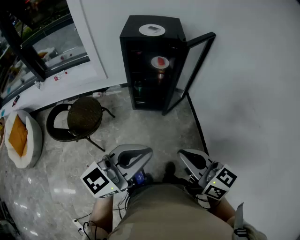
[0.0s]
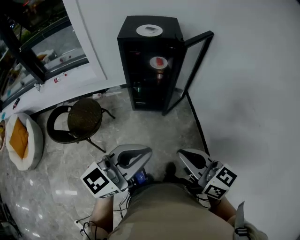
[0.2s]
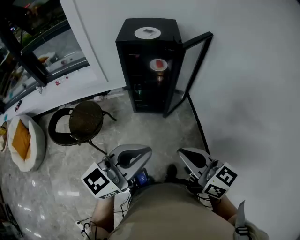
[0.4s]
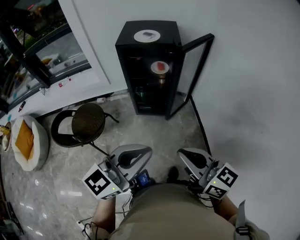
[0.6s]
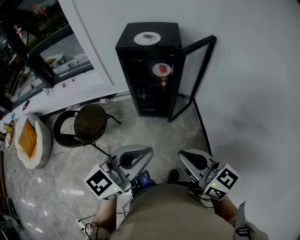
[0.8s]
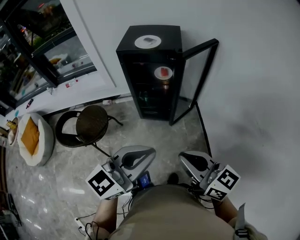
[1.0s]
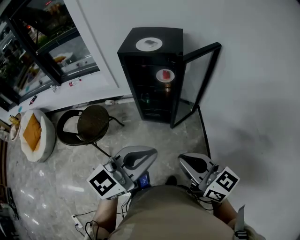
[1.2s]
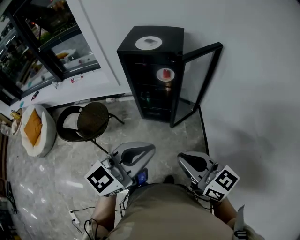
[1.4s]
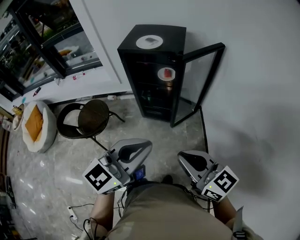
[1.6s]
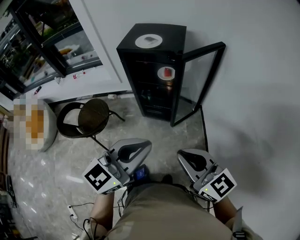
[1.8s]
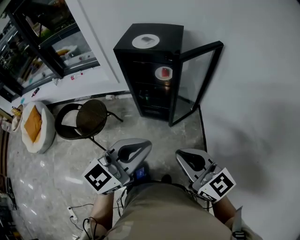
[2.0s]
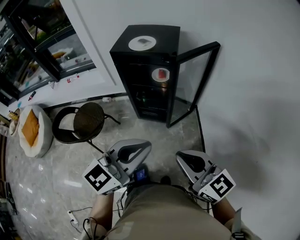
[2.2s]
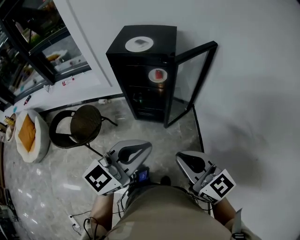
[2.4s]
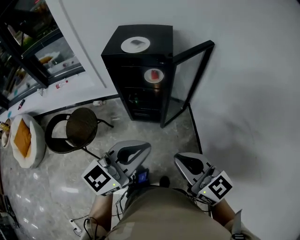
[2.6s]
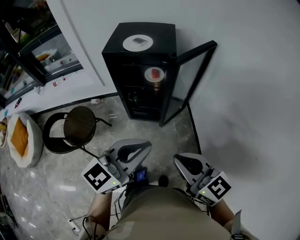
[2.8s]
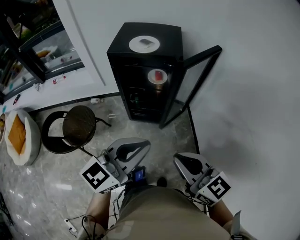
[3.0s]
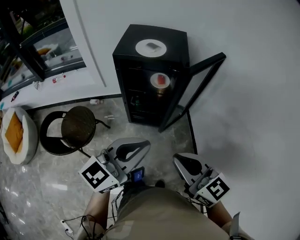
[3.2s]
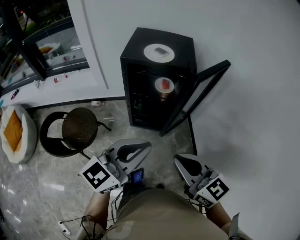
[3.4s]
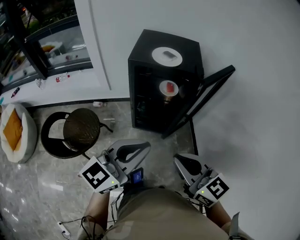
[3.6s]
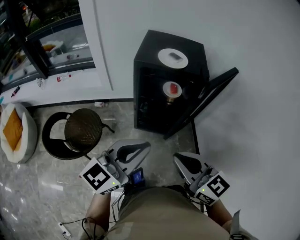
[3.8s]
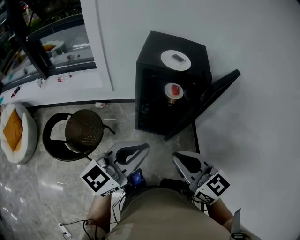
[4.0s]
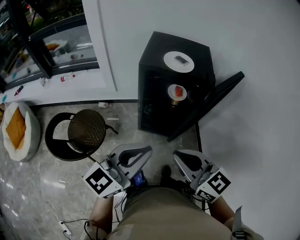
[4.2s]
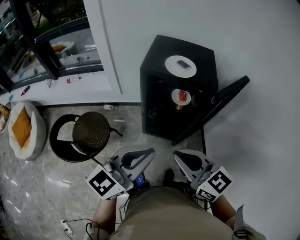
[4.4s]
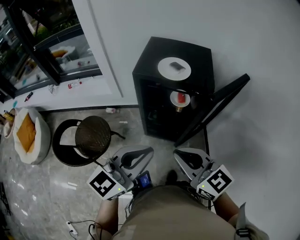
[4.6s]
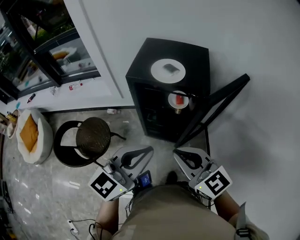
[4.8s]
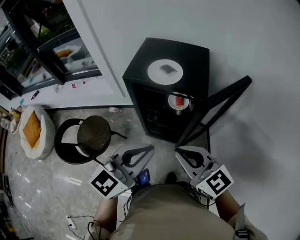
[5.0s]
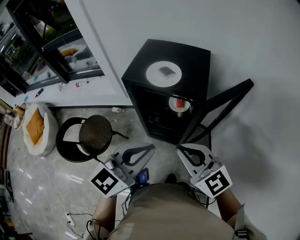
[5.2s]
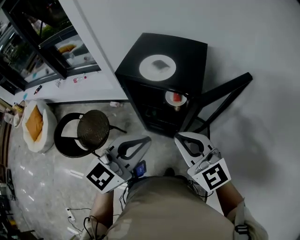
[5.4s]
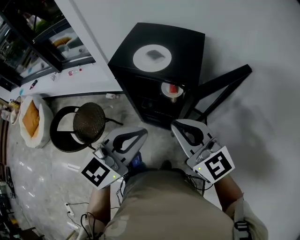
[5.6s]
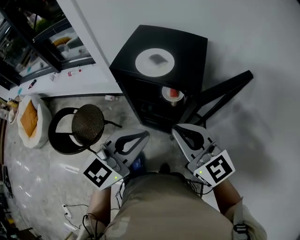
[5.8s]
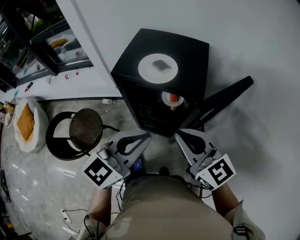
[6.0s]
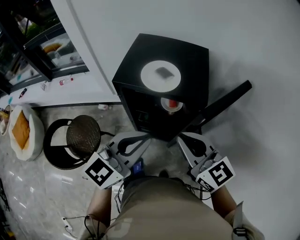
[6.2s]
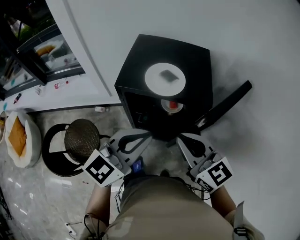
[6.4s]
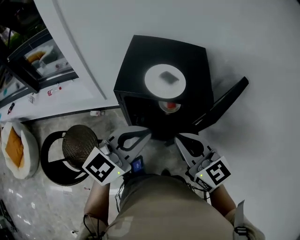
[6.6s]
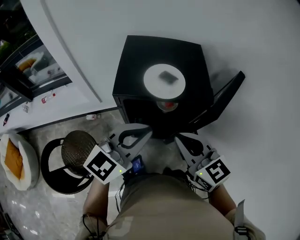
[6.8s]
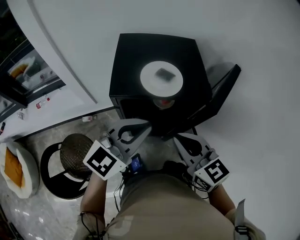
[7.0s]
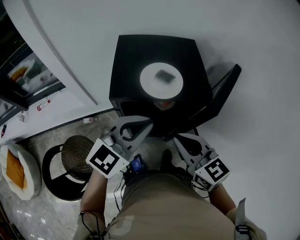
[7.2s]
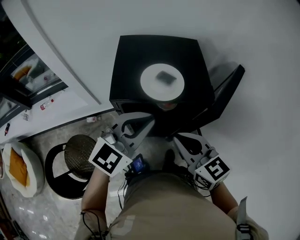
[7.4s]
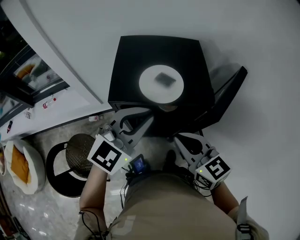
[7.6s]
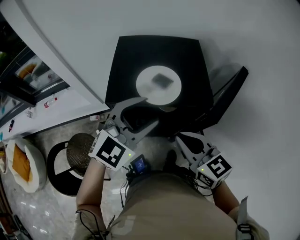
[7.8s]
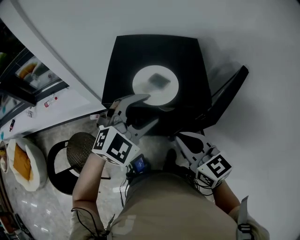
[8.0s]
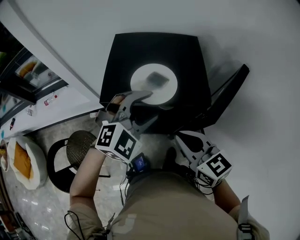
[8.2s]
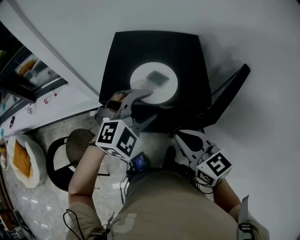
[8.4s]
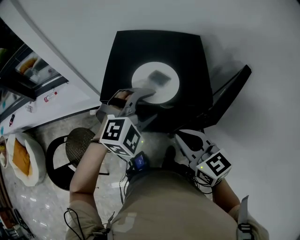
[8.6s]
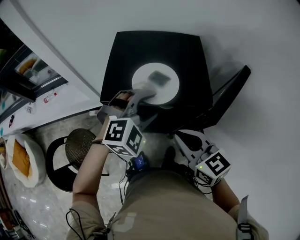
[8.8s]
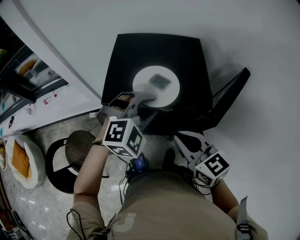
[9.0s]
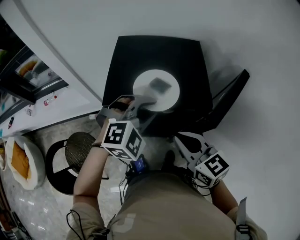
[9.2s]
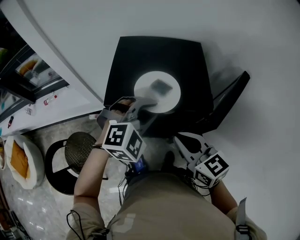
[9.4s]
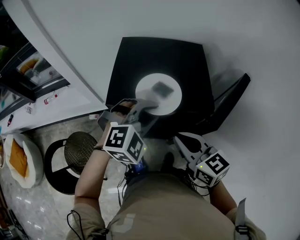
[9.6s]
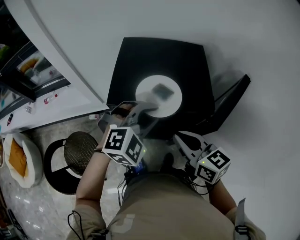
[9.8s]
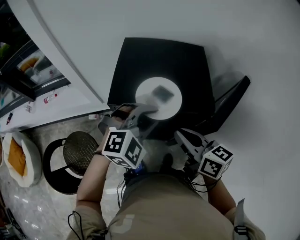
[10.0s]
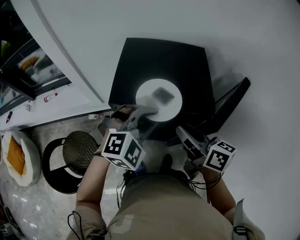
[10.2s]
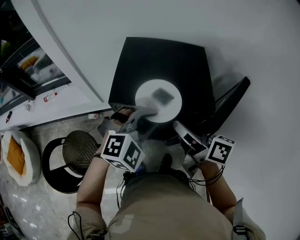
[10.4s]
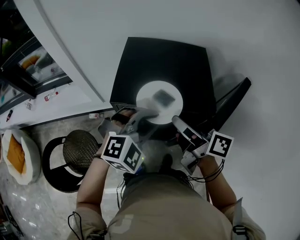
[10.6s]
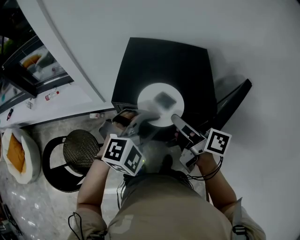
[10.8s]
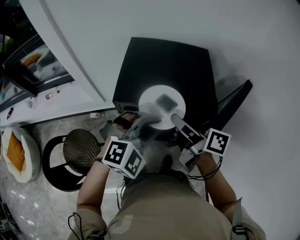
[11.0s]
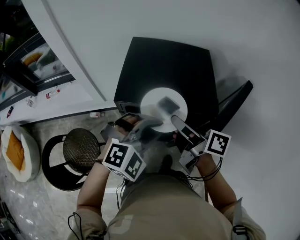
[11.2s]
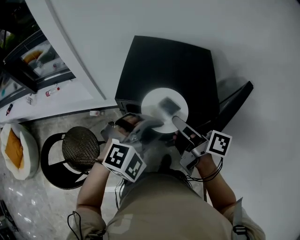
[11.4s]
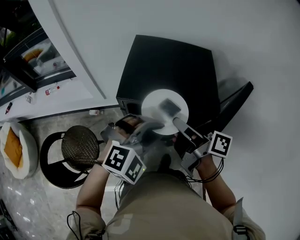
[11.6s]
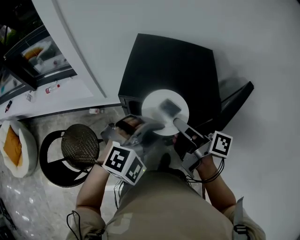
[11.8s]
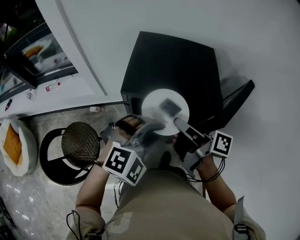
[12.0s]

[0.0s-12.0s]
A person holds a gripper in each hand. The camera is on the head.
0.0s to 1.6s: The grippers both shift to the right and forward by some 15 cm.
1.6s to 3.0s: Both grippers move forward and to the left, approximately 10 cm.
3.0s to 4.4s: The grippers both shift to the left and forward by approximately 15 cm.
4.4s to 6.0s: Both grippers travel together forward and to the right, roughly 15 cm.
6.0s to 7.6s: The right gripper goes approximately 10 cm to the left, downward and forward, and turns by roughly 20 degrees, while the left gripper heads forward and to the left, covering roughly 15 cm, and changes its angle by some 30 degrees.
7.6s to 9.0s: The left gripper is displaced downward and forward by about 10 cm, rotates about 40 degrees, and opens.
9.0s to 10.4s: The right gripper ends up some 5 cm from where it was, twists about 40 degrees clockwise, seen from behind, and opens.
10.4s to 12.0s: The right gripper changes its angle by some 30 degrees, and closes up. The left gripper heads backward, covering roughly 5 cm.

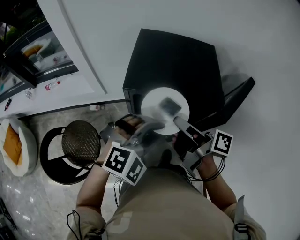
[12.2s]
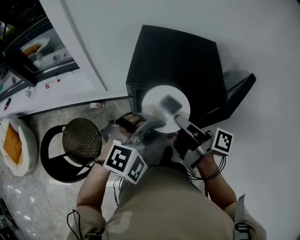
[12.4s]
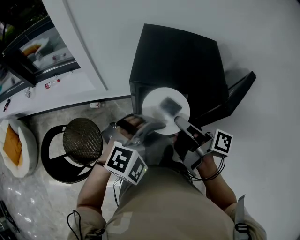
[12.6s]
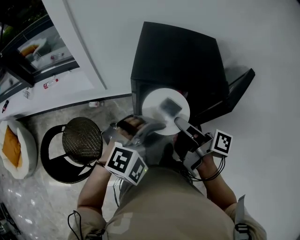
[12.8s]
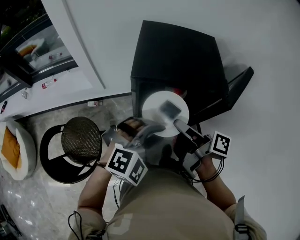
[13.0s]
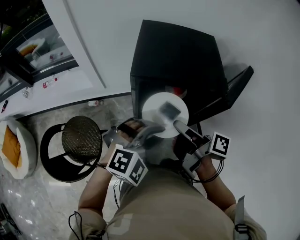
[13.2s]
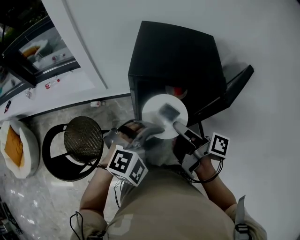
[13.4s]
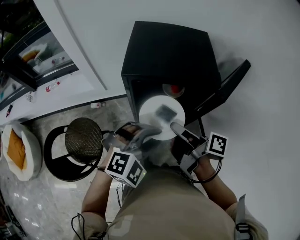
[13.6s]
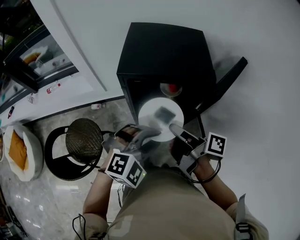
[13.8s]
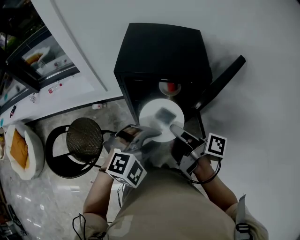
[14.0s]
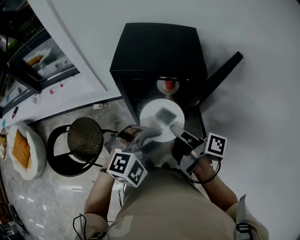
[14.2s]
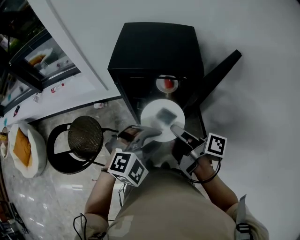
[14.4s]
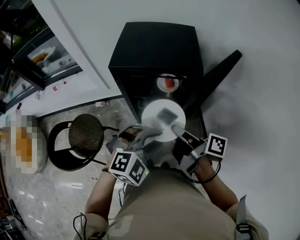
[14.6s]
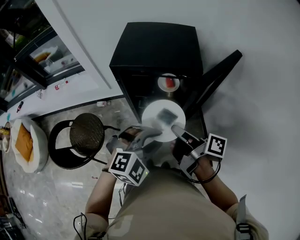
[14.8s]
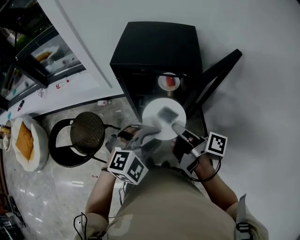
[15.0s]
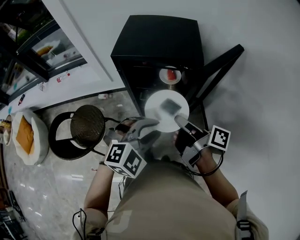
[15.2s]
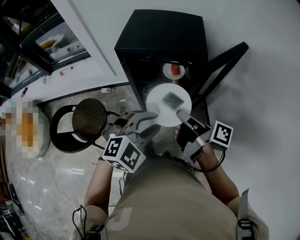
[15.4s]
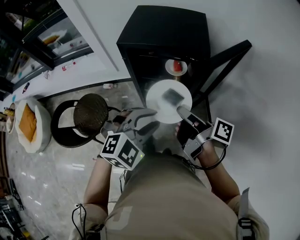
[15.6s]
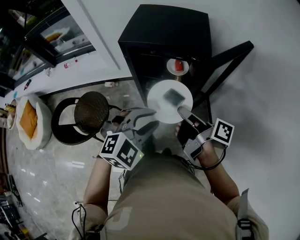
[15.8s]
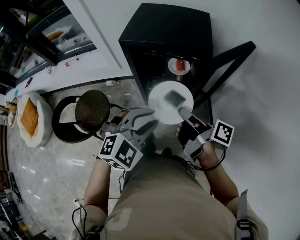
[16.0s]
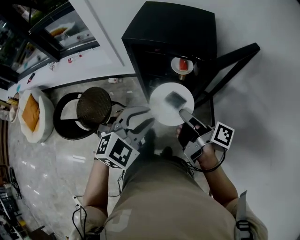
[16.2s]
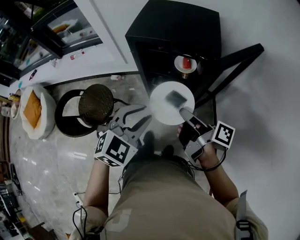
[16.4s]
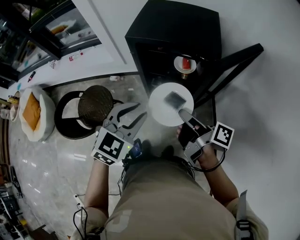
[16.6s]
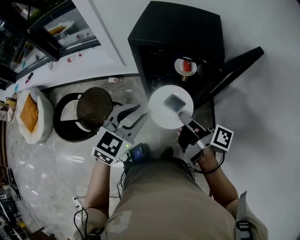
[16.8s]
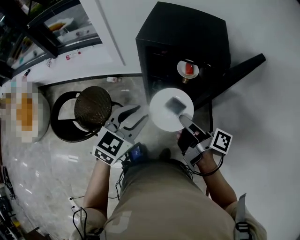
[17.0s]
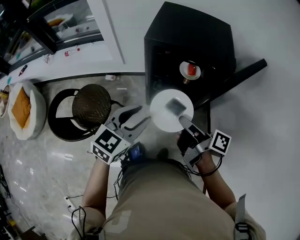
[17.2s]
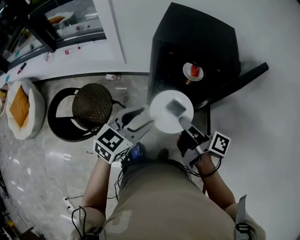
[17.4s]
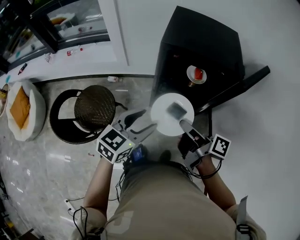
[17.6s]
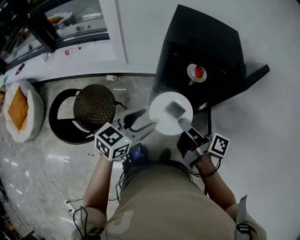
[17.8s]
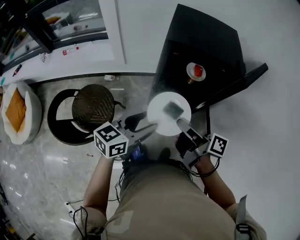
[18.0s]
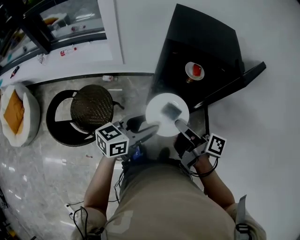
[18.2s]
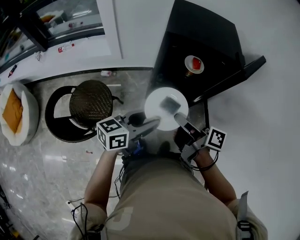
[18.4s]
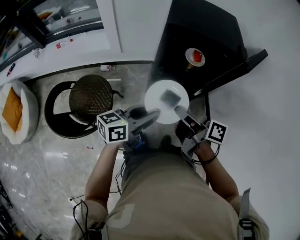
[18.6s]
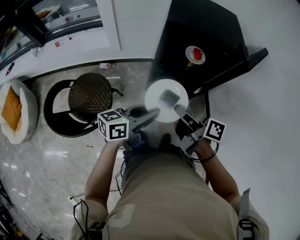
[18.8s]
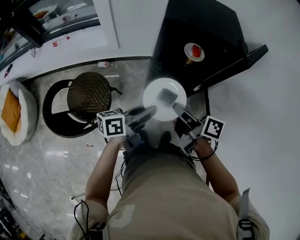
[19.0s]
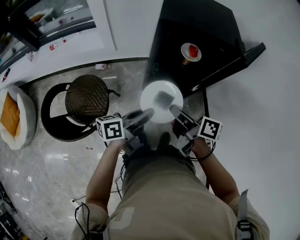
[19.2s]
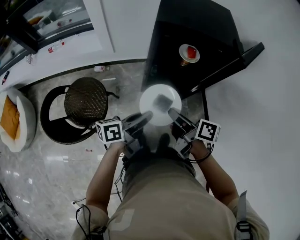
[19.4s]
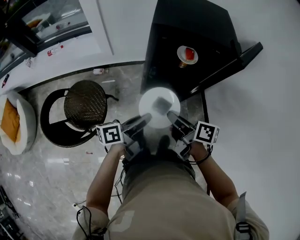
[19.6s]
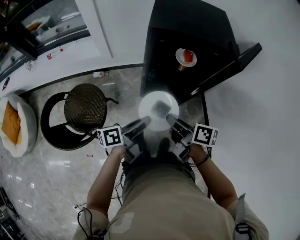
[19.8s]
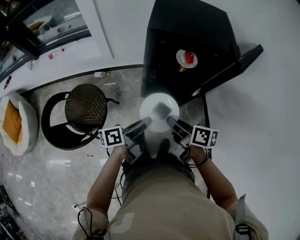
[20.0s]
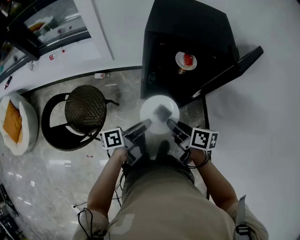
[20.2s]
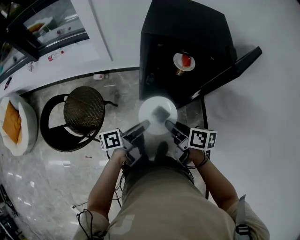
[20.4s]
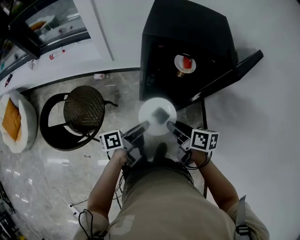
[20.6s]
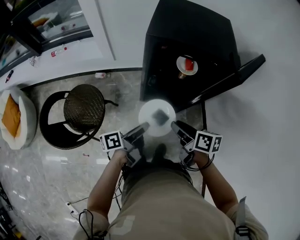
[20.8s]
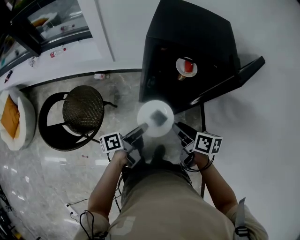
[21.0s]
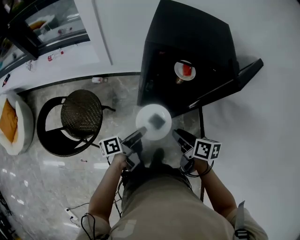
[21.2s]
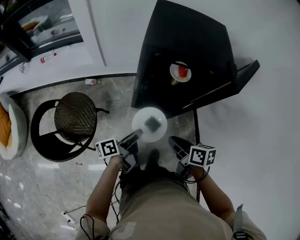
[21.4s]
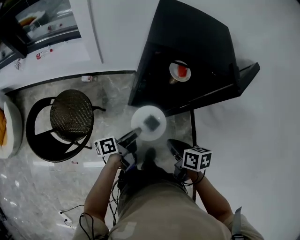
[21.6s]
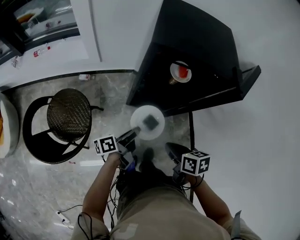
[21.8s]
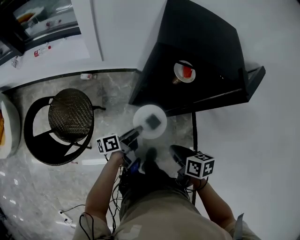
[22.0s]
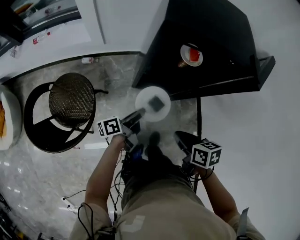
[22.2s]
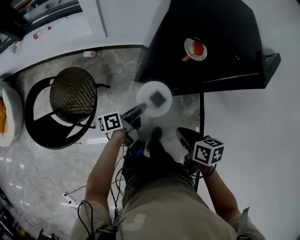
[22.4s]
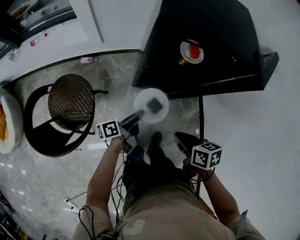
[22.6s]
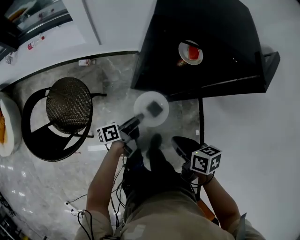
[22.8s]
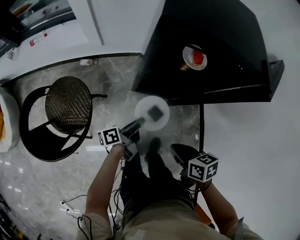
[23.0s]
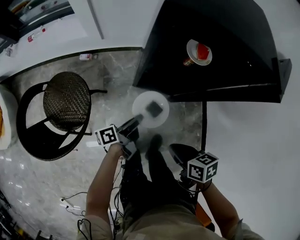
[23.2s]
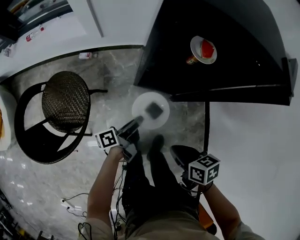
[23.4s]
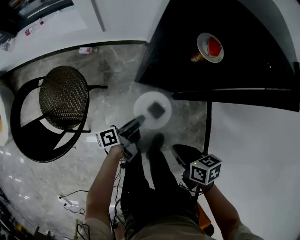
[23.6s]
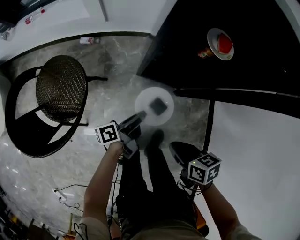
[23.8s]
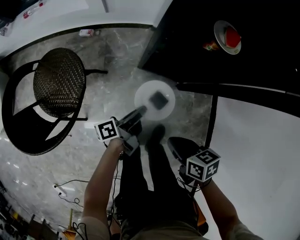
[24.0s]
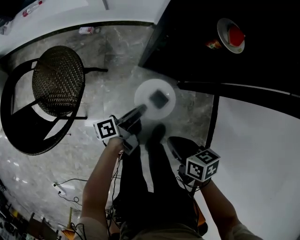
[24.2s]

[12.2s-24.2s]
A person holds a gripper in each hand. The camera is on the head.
12.2s to 13.8s: The grippers both shift backward by some 10 cm.
13.8s to 15.2s: The grippers both shift to the right by roughly 5 cm.
15.2s to 16.6s: The left gripper is displaced to the left by roughly 10 cm, and rotates some 30 degrees.
16.6s to 18.2s: The left gripper shifts roughly 10 cm to the left and downward, twists about 40 degrees counterclockwise, seen from behind, and opens its fingers, while the right gripper shifts about 15 cm to the left.
18.2s to 19.8s: Both grippers travel together downward, approximately 10 cm. The left gripper rotates around the line of its fingers by roughly 40 degrees, counterclockwise from behind, and closes up.
19.8s to 21.2s: The right gripper moves to the right, some 5 cm, and opens. The left gripper ends up approximately 5 cm from where it was.
21.2s to 22.6s: The left gripper shifts about 10 cm downward; the right gripper goes some 5 cm downward, and closes up.
22.6s to 24.2s: The two grippers go some 15 cm downward.
